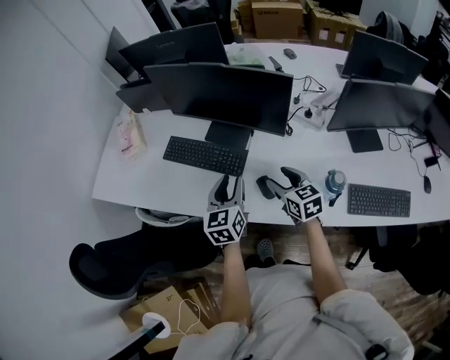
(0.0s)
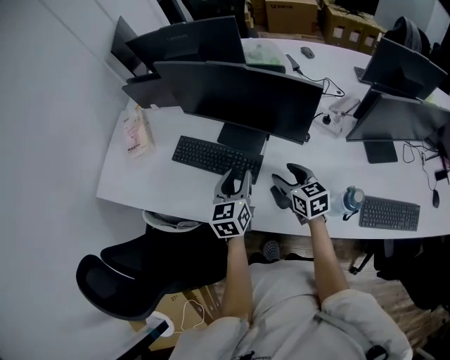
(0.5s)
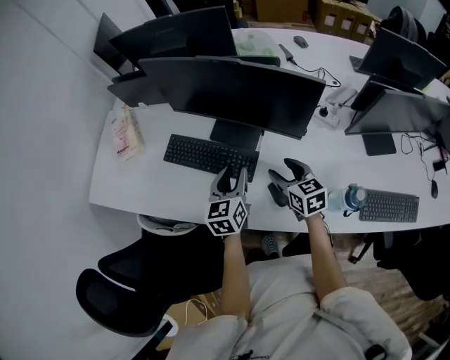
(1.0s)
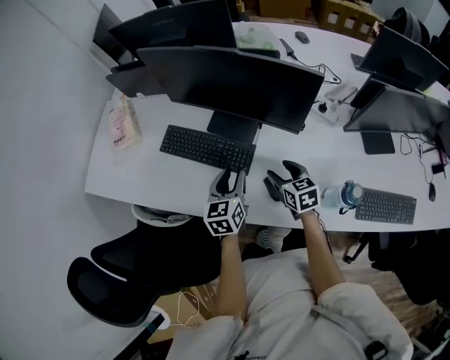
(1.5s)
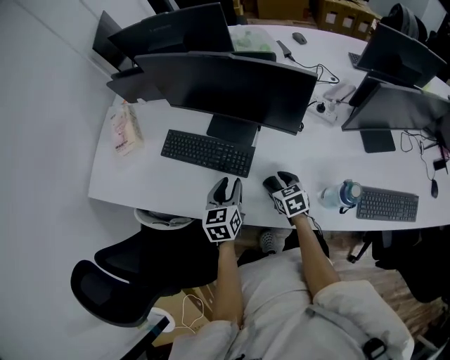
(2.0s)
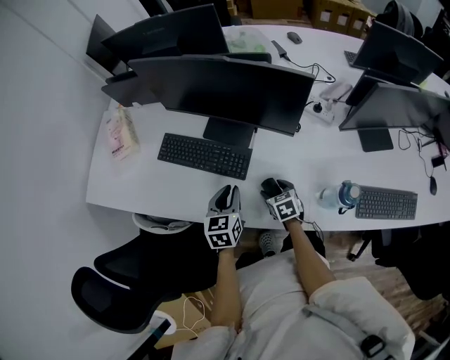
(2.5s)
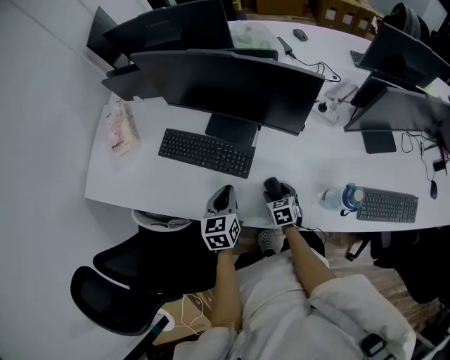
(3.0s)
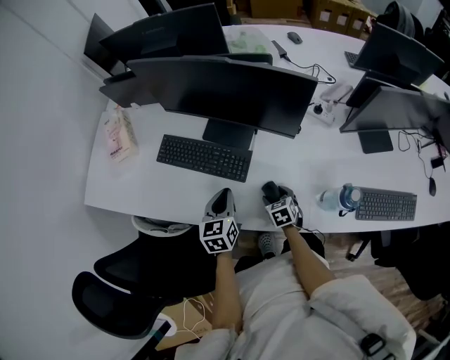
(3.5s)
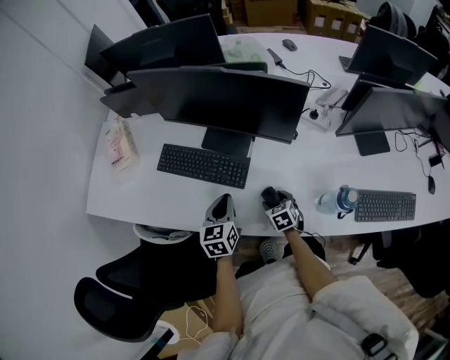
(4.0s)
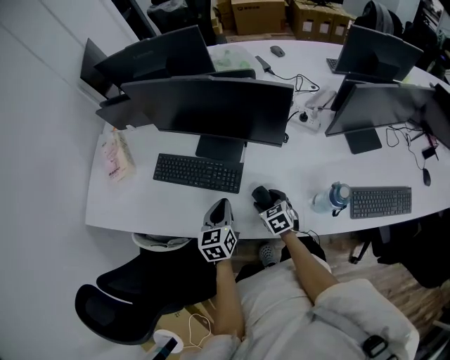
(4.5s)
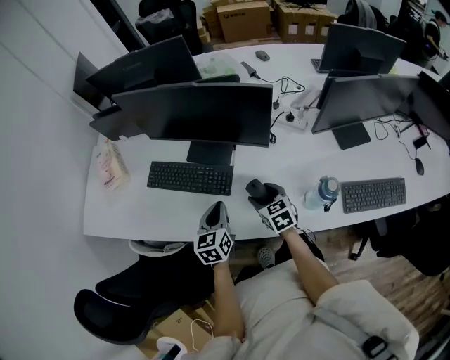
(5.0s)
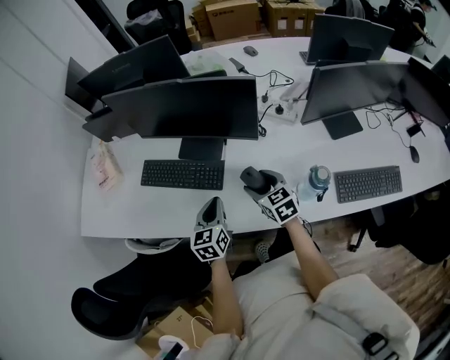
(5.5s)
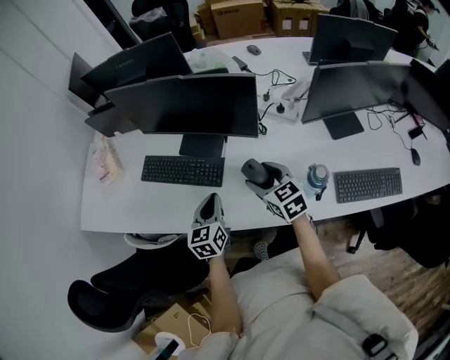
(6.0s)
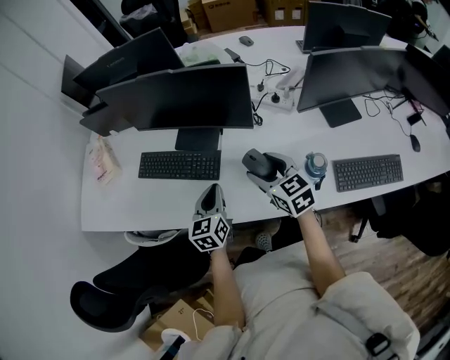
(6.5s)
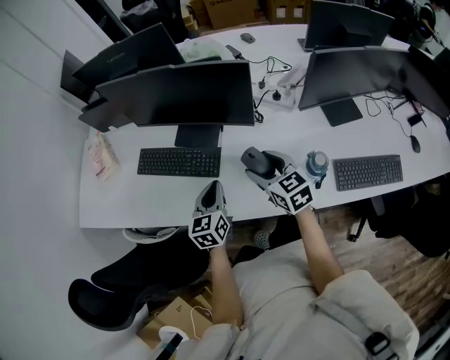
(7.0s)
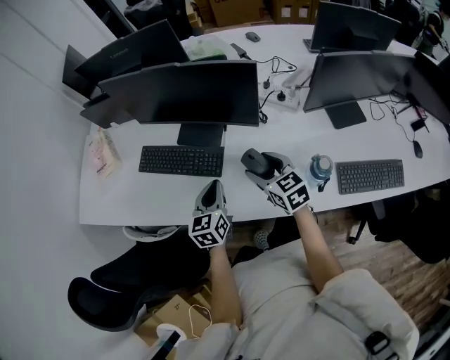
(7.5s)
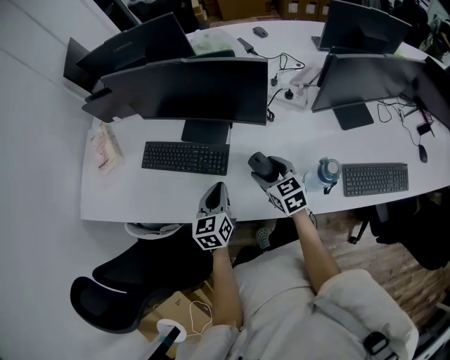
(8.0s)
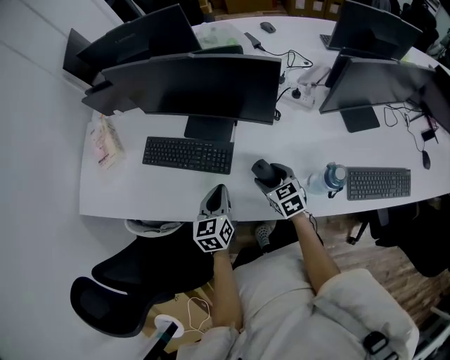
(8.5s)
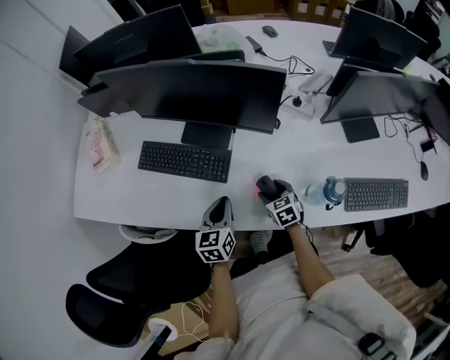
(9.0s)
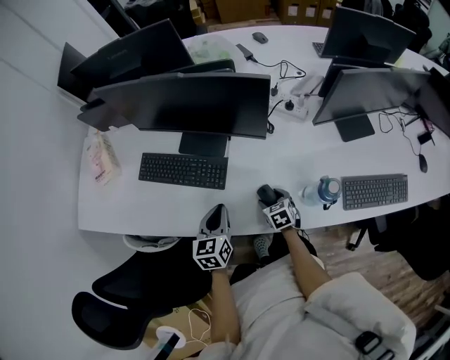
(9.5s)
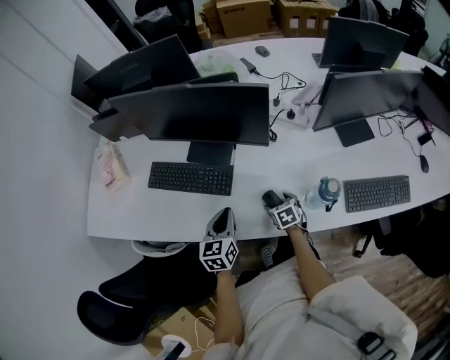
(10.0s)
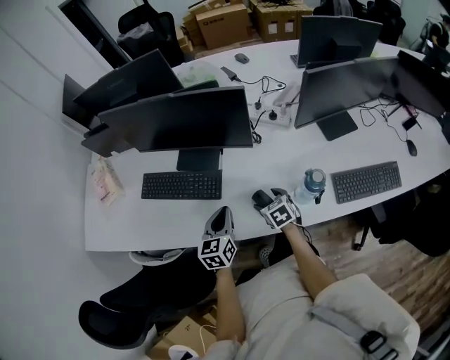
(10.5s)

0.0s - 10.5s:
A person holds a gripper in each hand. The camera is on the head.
0.0s - 2.0s: The grippers both shift downward and forward by approximately 15 cm.
2.0s - 4.0s: The right gripper travels downward by some 10 cm. The left gripper closes up.
4.0s - 6.5s: The right gripper moves upward, approximately 25 cm, and angles its fingers upward, by roughly 30 degrees. The left gripper shifts roughly 5 cm to the right.
6.5s - 8.5s: The right gripper goes about 15 cm downward.
8.5s - 10.5s: The left gripper changes place by approximately 5 cm.

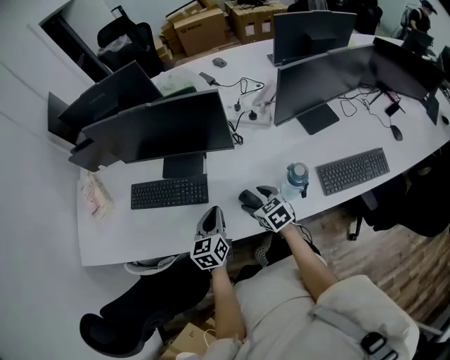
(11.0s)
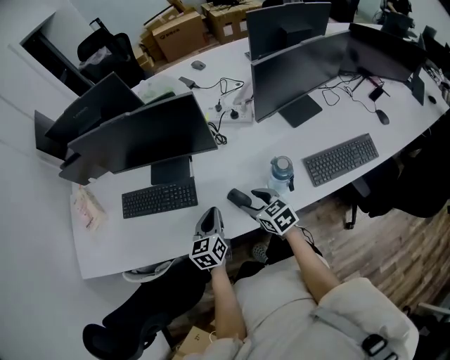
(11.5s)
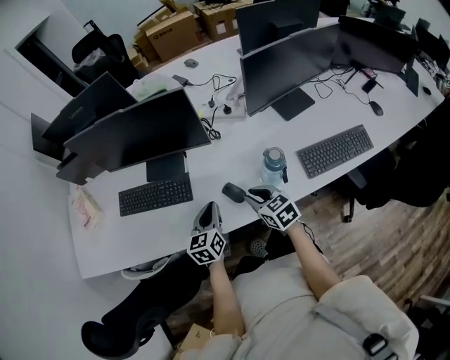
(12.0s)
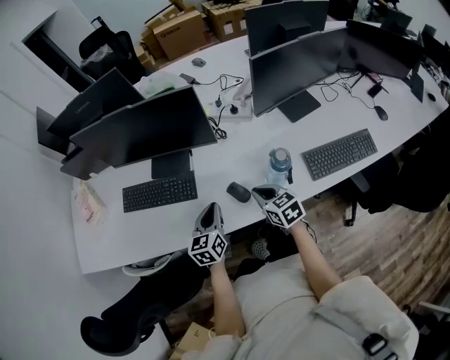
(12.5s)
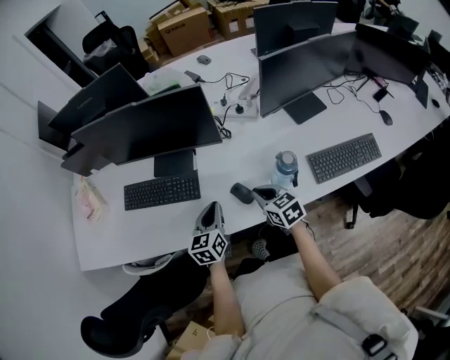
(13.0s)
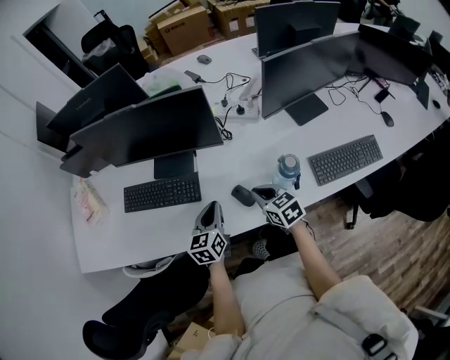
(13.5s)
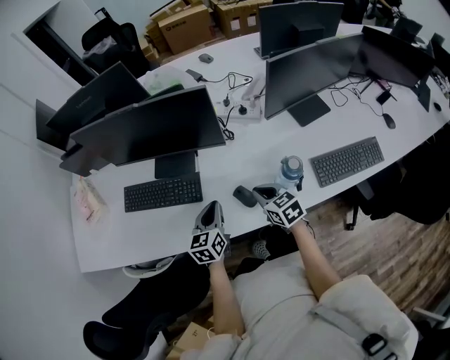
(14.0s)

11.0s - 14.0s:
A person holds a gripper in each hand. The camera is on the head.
11.0s - 12.5s: The right gripper moves to the right and backward, approximately 5 cm, and closes.
12.5s - 14.0s: There are only small adjustments of the grippers.

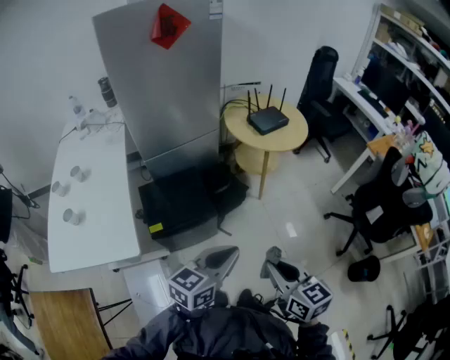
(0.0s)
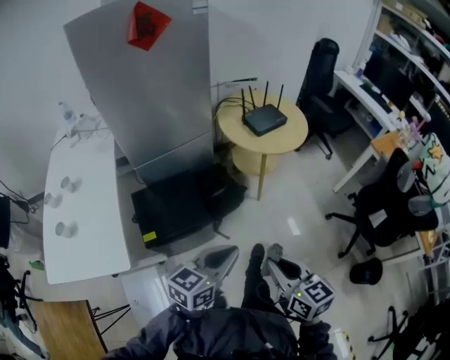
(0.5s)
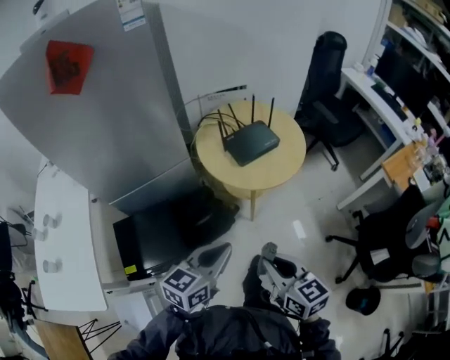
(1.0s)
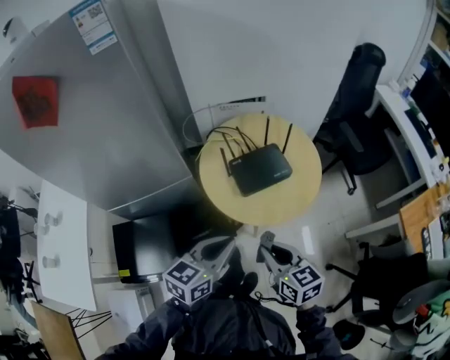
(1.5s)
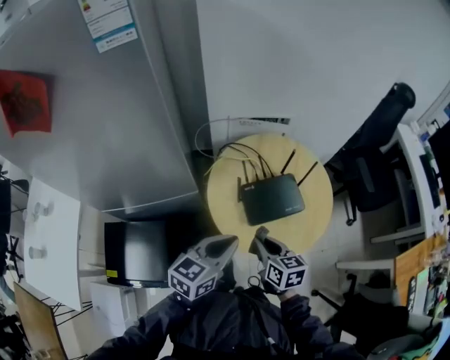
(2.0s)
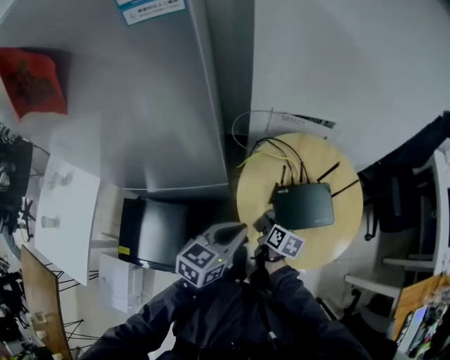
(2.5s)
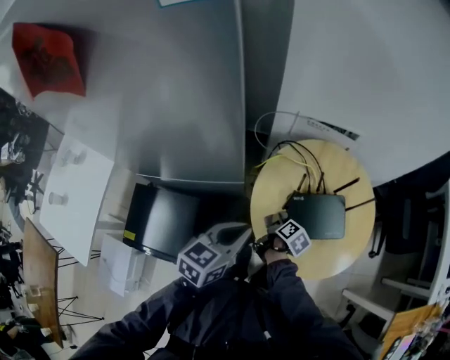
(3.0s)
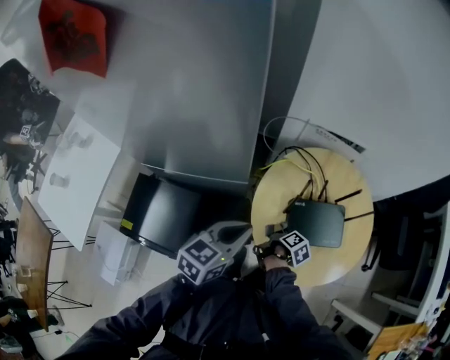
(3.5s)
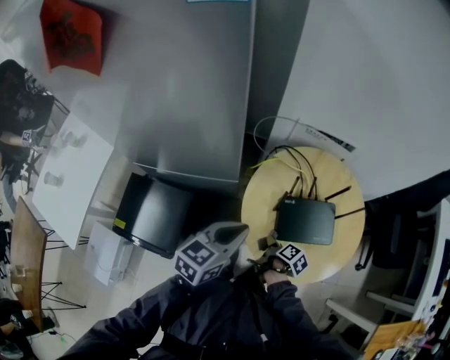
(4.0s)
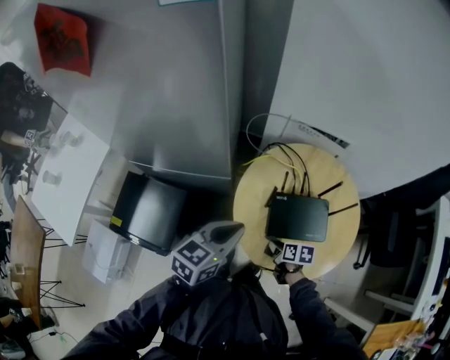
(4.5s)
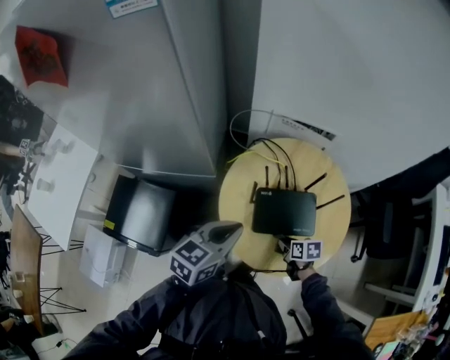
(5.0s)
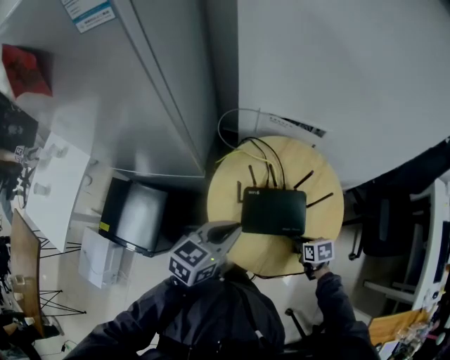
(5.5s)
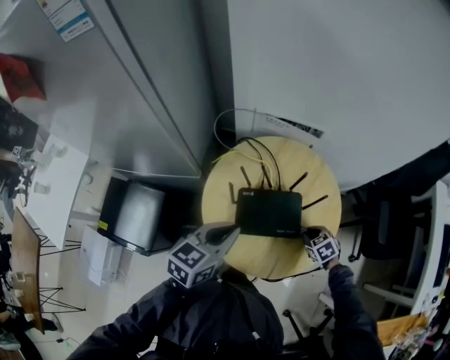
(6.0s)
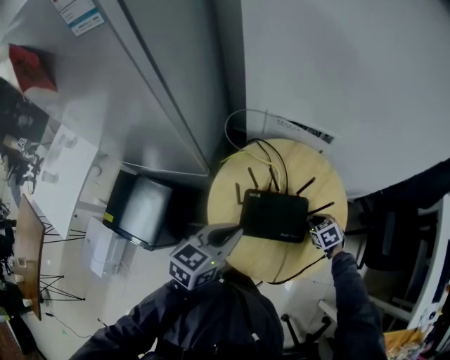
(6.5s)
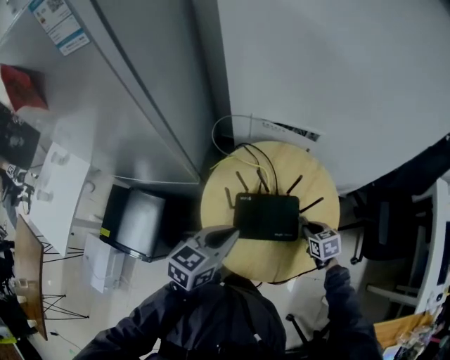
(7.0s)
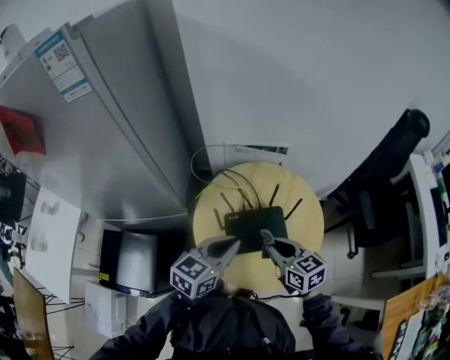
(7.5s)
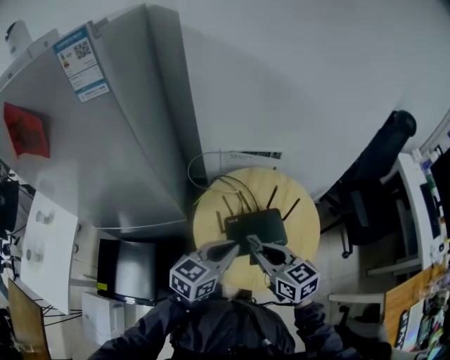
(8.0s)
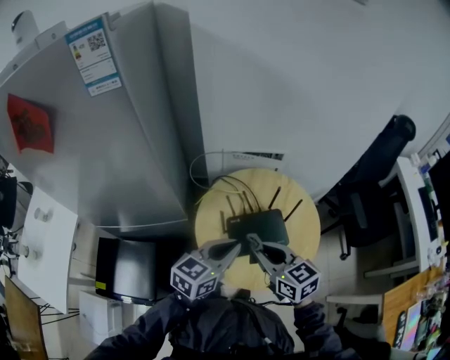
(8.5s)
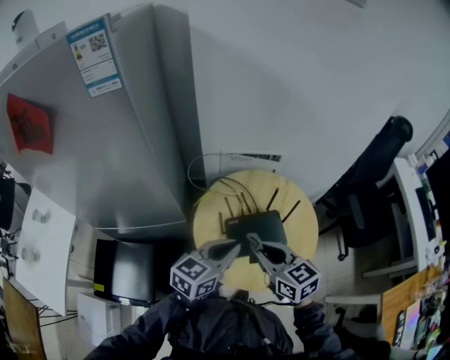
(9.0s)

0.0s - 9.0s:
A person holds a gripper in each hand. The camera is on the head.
0.0s - 2.0s: The pair of grippers is taken forward, about 70 cm.
2.0s - 4.5s: The right gripper moves downward, some 15 cm, and swivels roughly 40 degrees.
4.5s - 7.0s: The right gripper is displaced to the right by roughly 25 cm, and rotates about 40 degrees. The left gripper shifts about 15 cm to the right.
7.0s - 9.0s: The left gripper travels upward by roughly 5 cm. The right gripper heads upward, to the left and backward, covering about 35 cm, and tilts its fingers some 30 degrees upward.

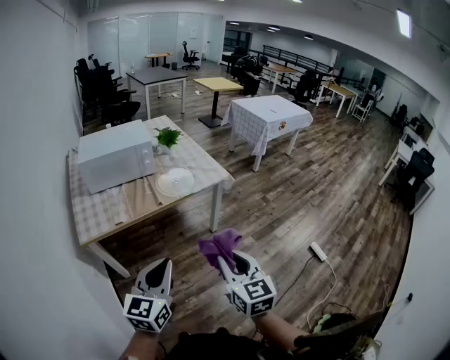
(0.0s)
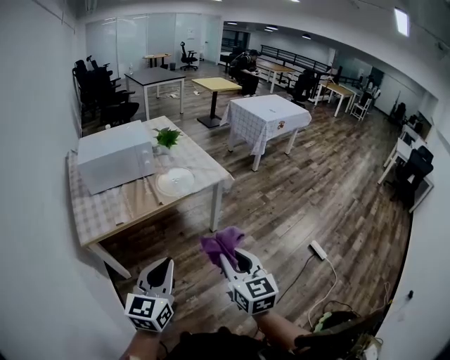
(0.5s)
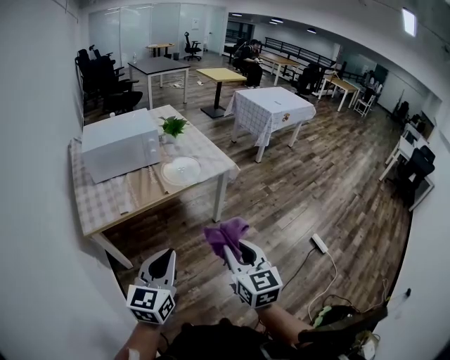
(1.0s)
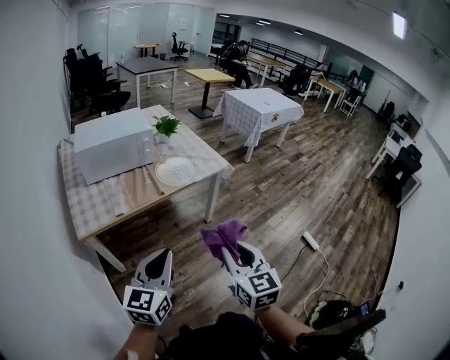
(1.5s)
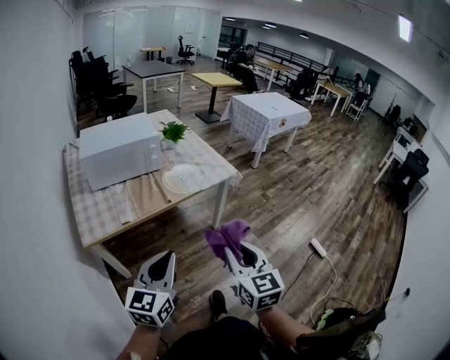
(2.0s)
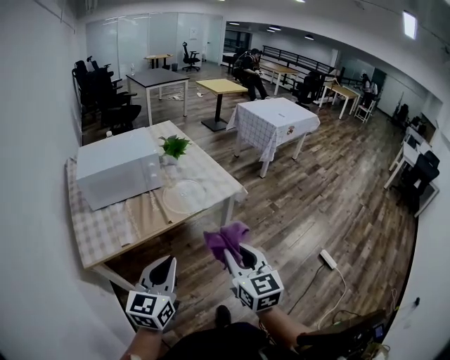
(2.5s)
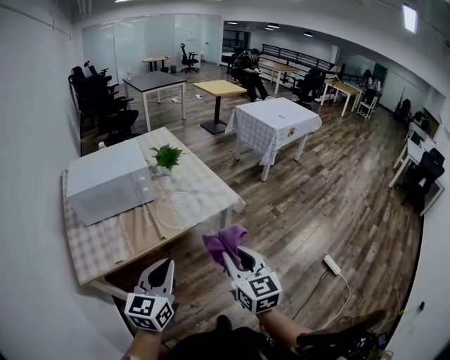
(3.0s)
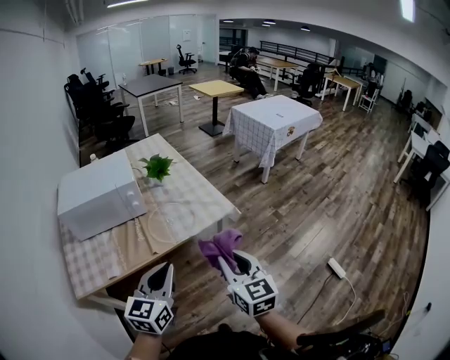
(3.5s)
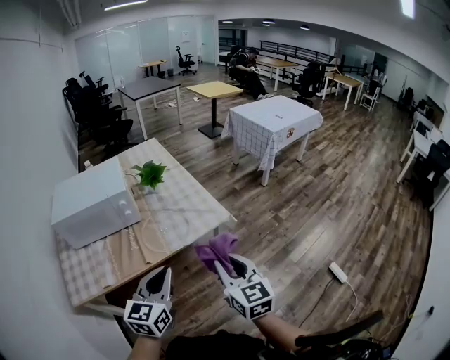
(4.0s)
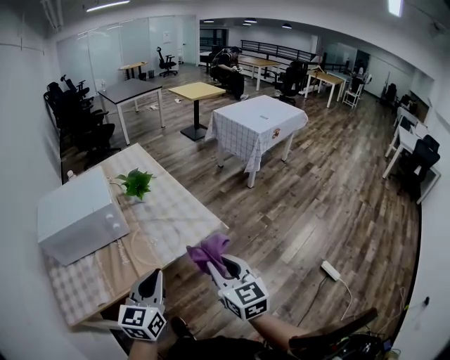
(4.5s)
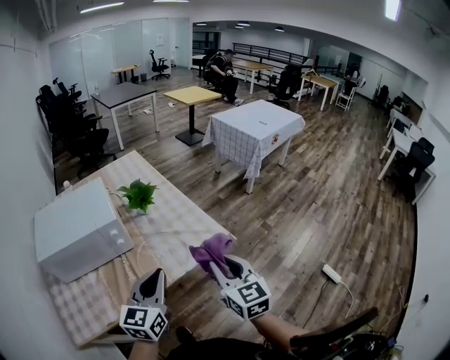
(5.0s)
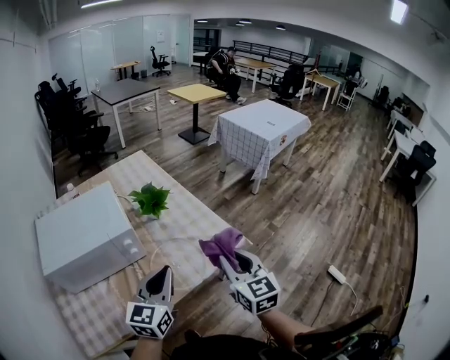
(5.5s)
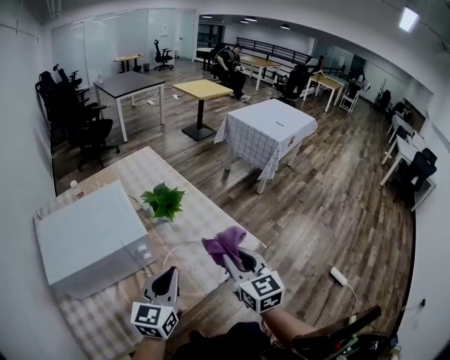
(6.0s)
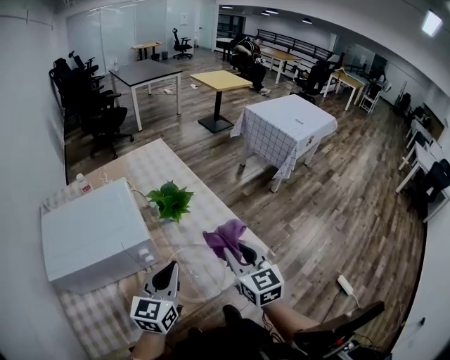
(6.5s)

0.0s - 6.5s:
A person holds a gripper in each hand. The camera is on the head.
0.0s - 2.0s: Both grippers move to the left, approximately 5 cm.
2.0s - 4.5s: Both grippers travel together forward, about 30 cm.
4.5s - 6.5s: Both grippers move forward and to the left, about 30 cm.
